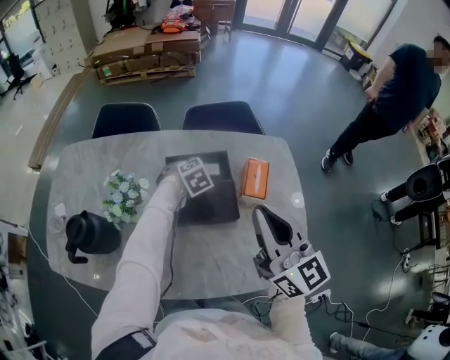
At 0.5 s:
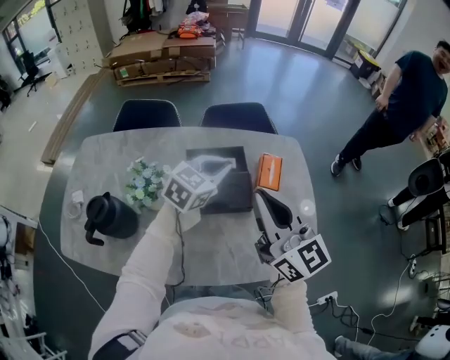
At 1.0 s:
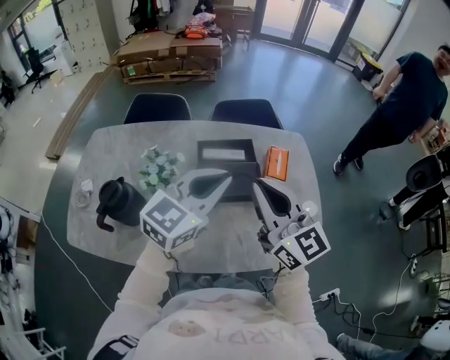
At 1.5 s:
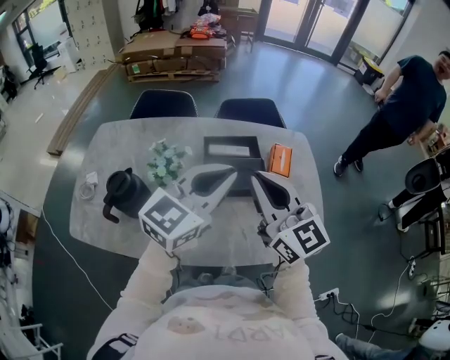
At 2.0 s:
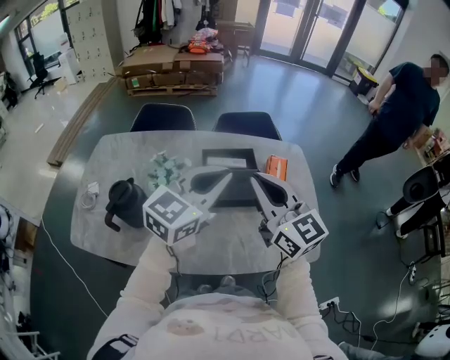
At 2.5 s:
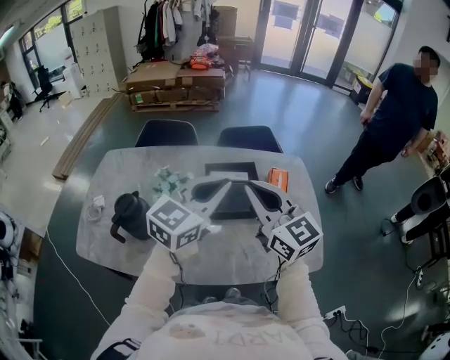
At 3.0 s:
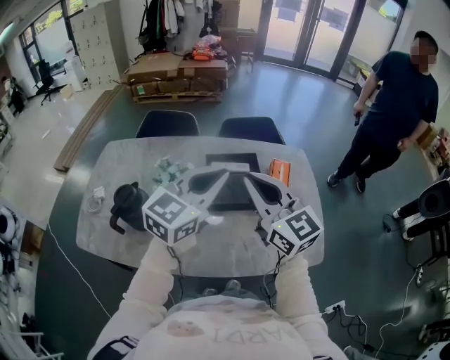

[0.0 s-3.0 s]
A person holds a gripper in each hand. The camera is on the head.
0.0 to 1.5 s: The right gripper is displaced to the left and backward by roughly 15 cm; the left gripper goes about 40 cm upward and backward, and tips its fingers upward by roughly 60 degrees.
1.5 to 3.0 s: The grippers make only small movements.

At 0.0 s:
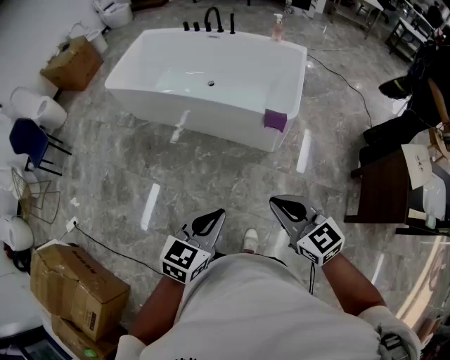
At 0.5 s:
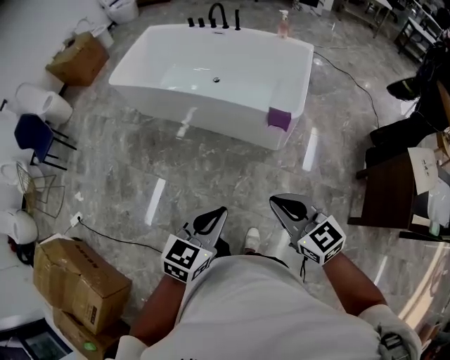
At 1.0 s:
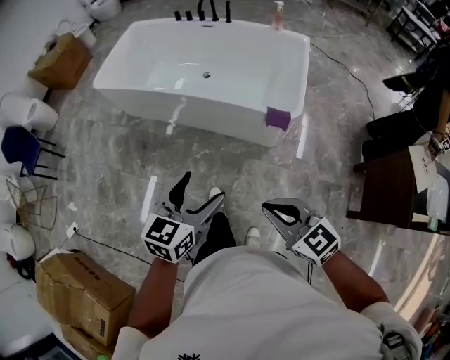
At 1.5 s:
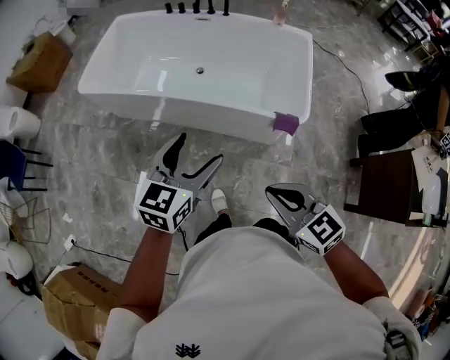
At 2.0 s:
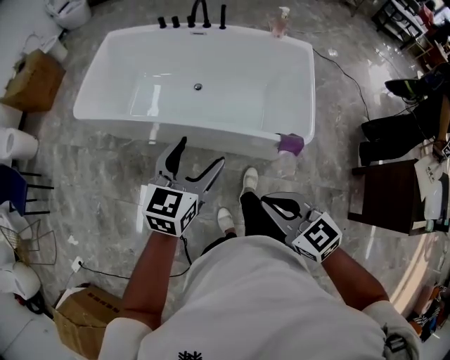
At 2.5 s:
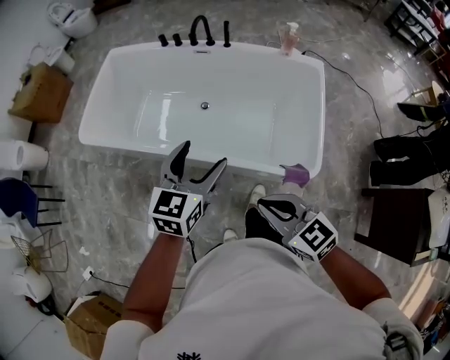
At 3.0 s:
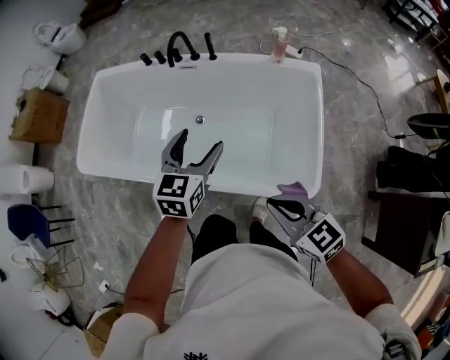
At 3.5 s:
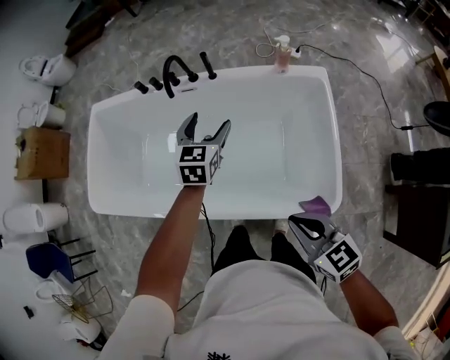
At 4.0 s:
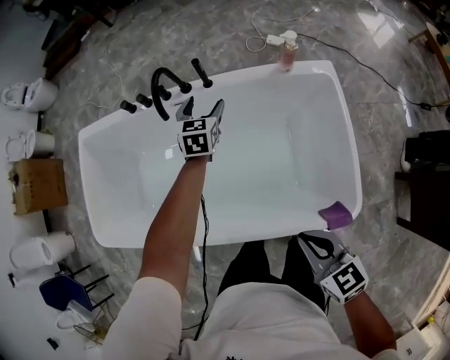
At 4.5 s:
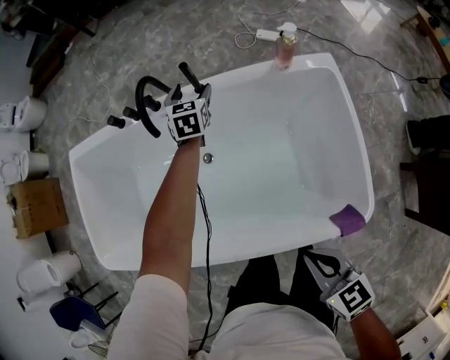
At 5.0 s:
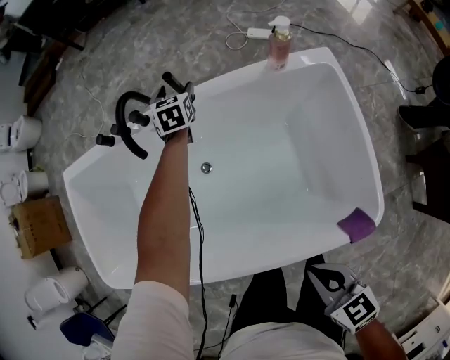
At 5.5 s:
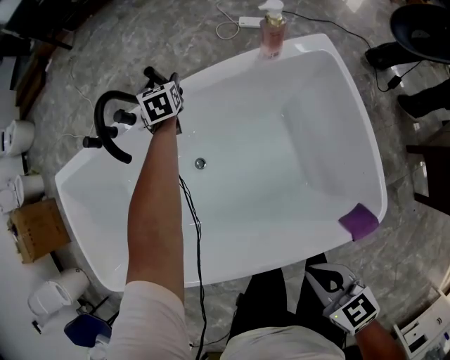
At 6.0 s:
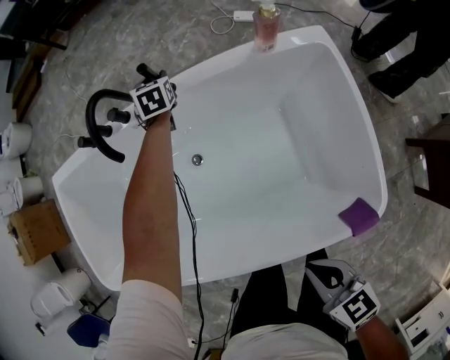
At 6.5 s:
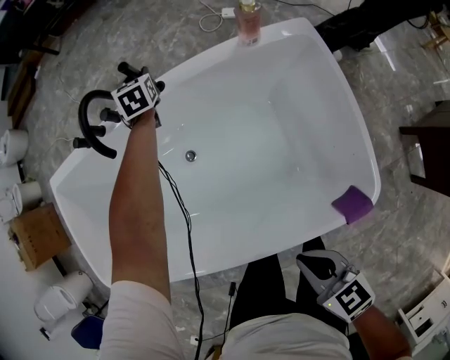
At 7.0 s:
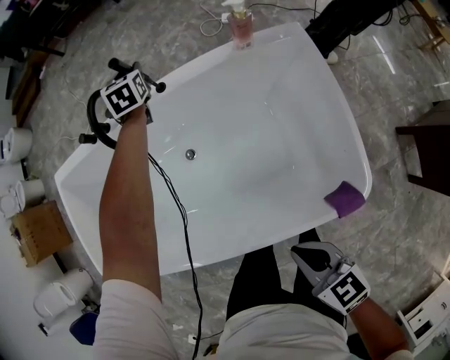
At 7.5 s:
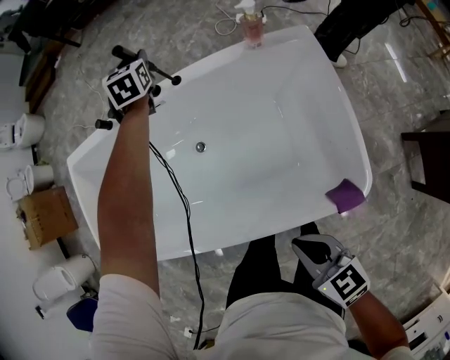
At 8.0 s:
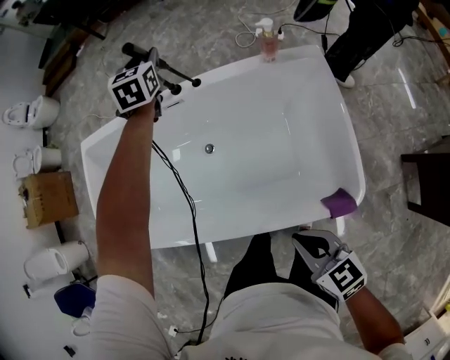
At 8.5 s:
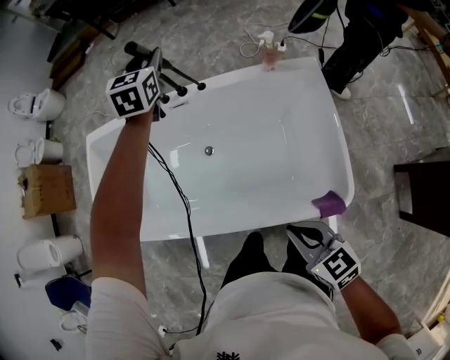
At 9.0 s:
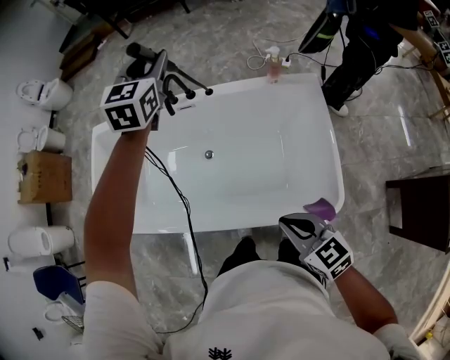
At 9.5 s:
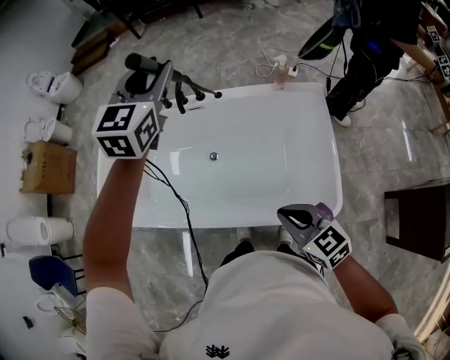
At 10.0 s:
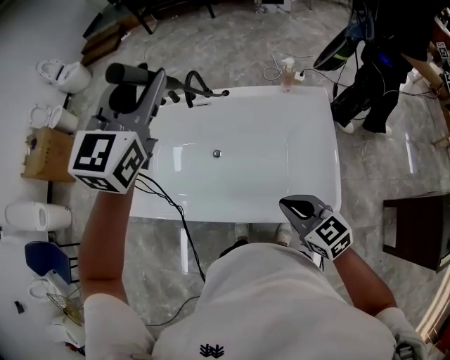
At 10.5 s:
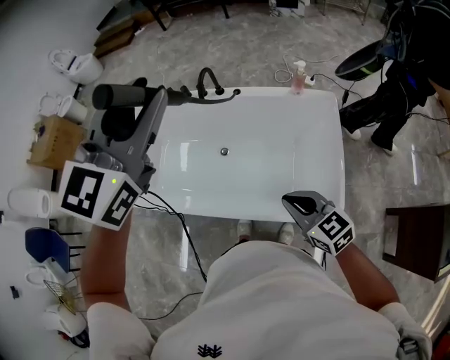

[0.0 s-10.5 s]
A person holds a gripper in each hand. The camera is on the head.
0.0 to 2.0 s: The two grippers go roughly 40 cm forward. The left gripper opens.
2.0 to 4.0 s: Both grippers are carried forward, roughly 60 cm. The right gripper rotates some 30 degrees.
4.0 to 6.5 s: The right gripper goes some 10 cm downward. Meanwhile the left gripper shifts about 25 cm forward and downward, and closes its fingers.
6.5 to 8.5 s: The right gripper shifts roughly 15 cm upward and backward. Meanwhile the left gripper shifts about 40 cm upward and backward.
8.5 to 10.5 s: The right gripper is displaced upward by approximately 10 cm. Meanwhile the left gripper heads backward and upward, covering approximately 40 cm.

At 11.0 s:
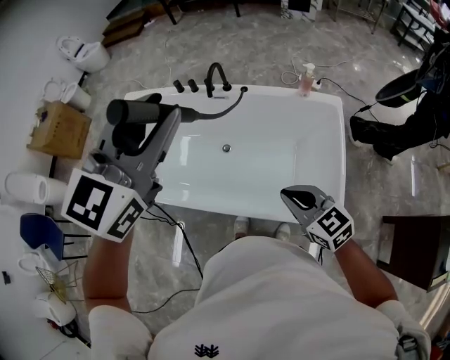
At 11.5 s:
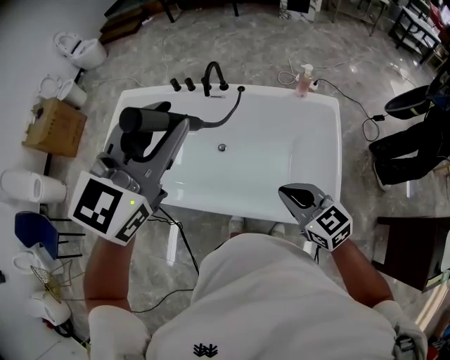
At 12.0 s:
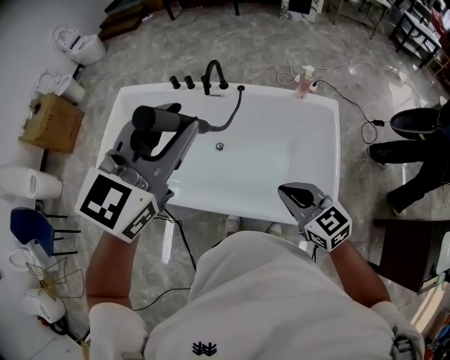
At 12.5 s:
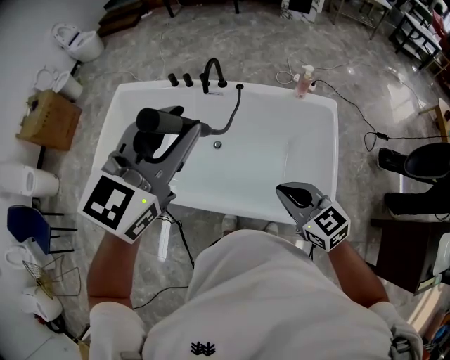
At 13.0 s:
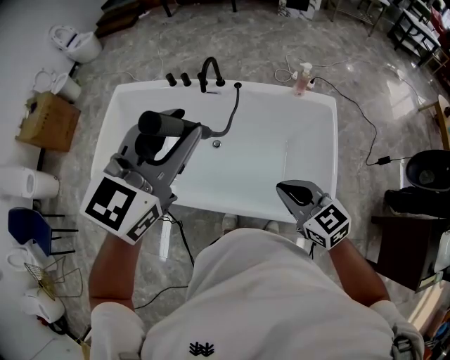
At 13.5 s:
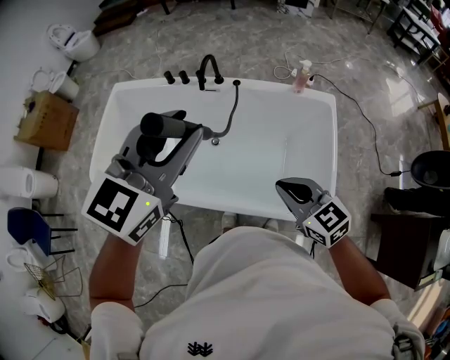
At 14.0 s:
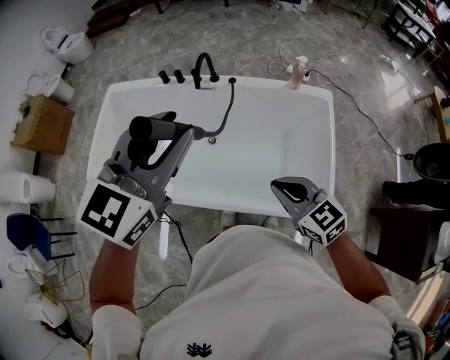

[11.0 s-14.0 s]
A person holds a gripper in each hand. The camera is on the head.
11.0 to 14.0 s: The grippers make only small movements.

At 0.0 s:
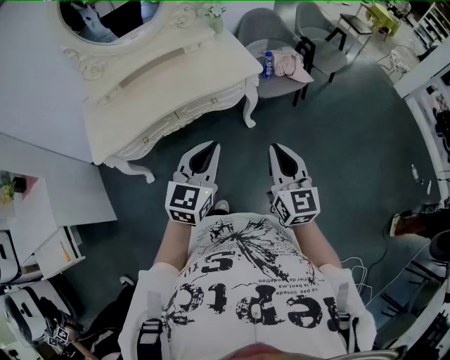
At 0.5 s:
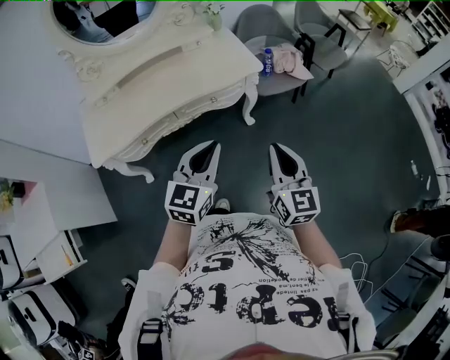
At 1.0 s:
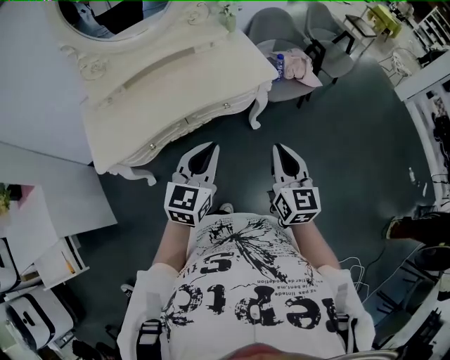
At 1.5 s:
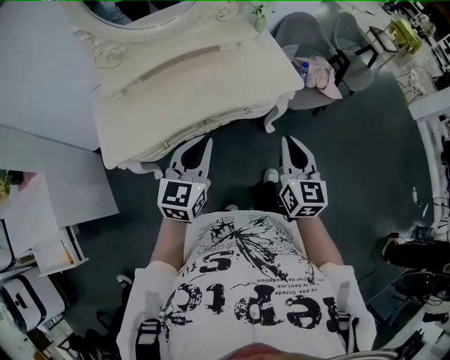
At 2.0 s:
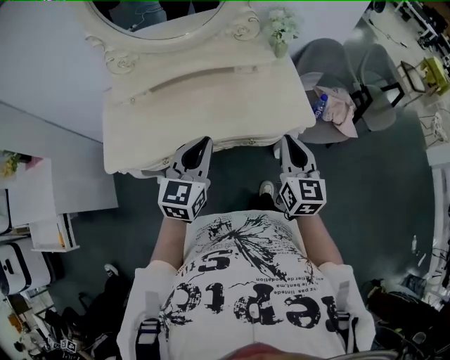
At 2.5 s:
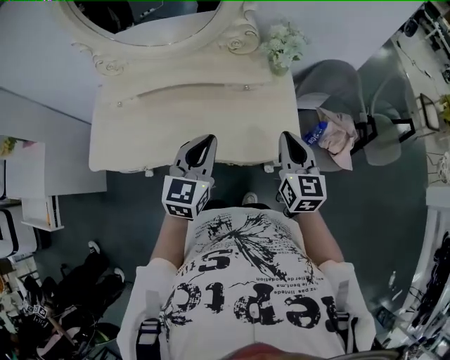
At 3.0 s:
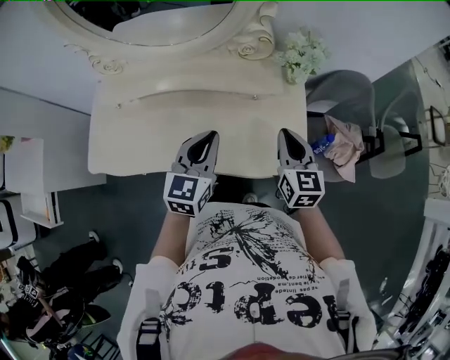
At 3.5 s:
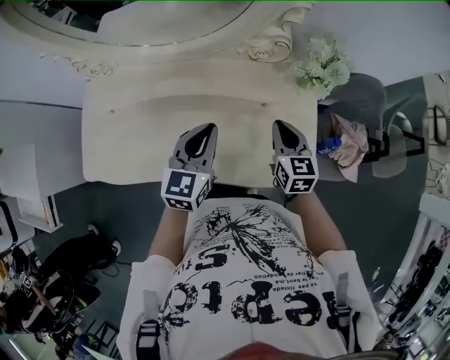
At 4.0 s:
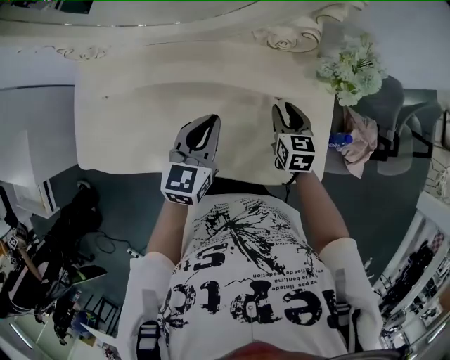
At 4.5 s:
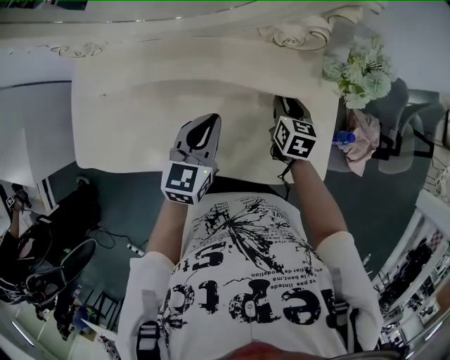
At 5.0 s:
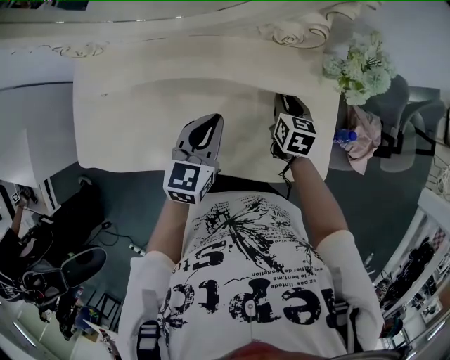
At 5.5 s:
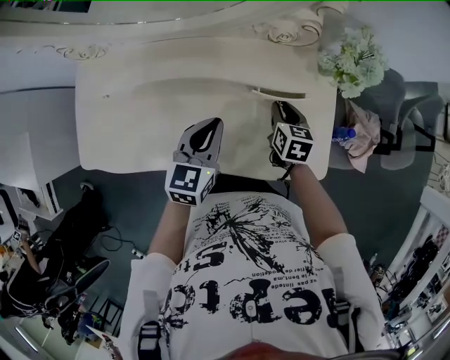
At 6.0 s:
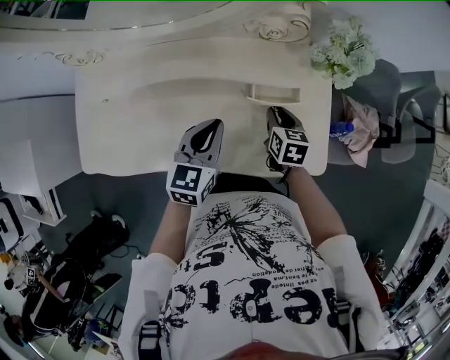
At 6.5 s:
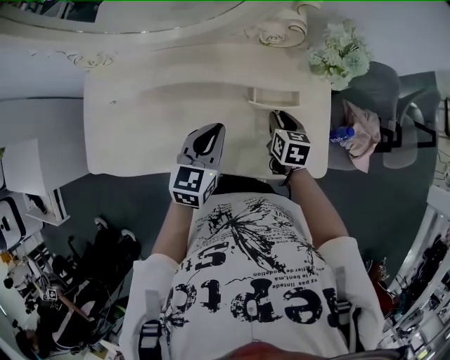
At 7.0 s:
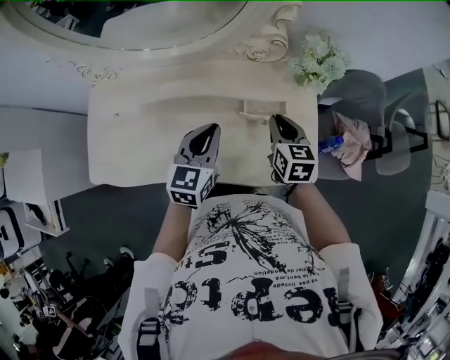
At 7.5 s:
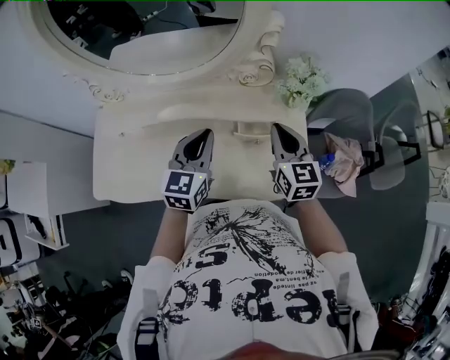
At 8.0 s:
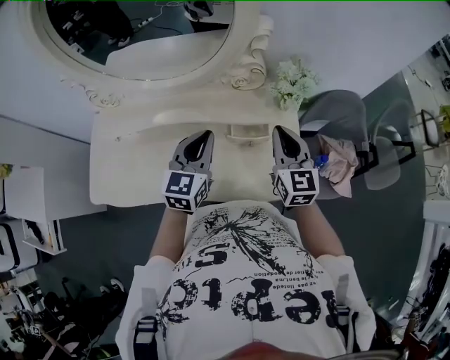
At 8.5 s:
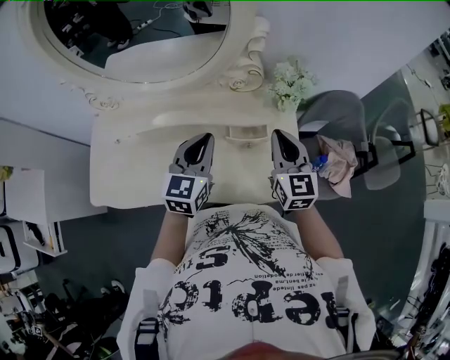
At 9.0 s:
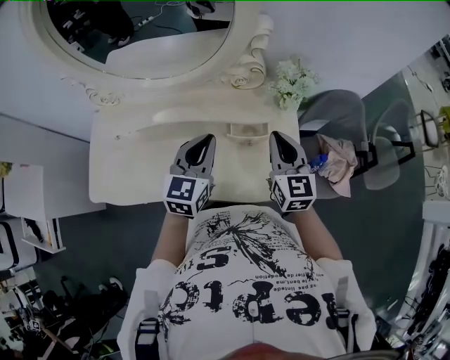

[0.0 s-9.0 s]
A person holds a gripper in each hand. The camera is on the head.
0.0 to 2.0 s: The grippers both shift forward and to the left by approximately 30 cm.
2.0 to 4.5 s: The grippers both shift forward and downward by roughly 40 cm. The right gripper tips its fingers downward by some 30 degrees, and opens up; the left gripper changes its angle by roughly 20 degrees.
4.5 to 7.0 s: The left gripper travels upward by approximately 5 cm. Meanwhile the right gripper moves upward and backward, approximately 15 cm.
7.0 to 9.0 s: The left gripper travels upward by some 5 cm, while the right gripper is displaced upward by approximately 10 cm, and changes its angle by some 20 degrees.

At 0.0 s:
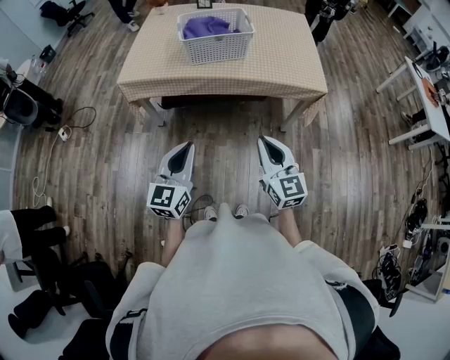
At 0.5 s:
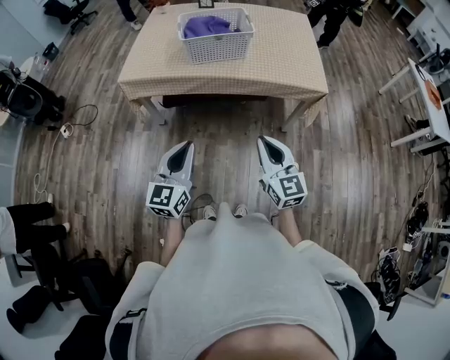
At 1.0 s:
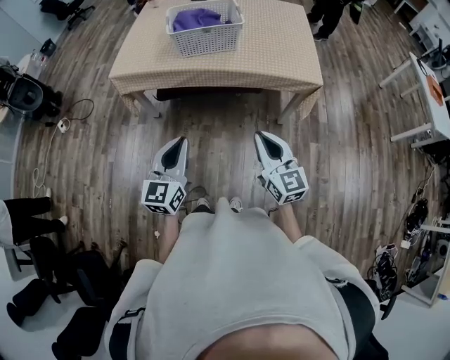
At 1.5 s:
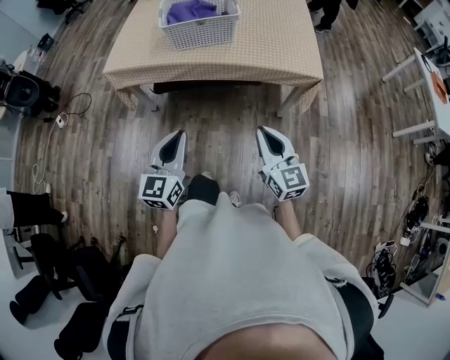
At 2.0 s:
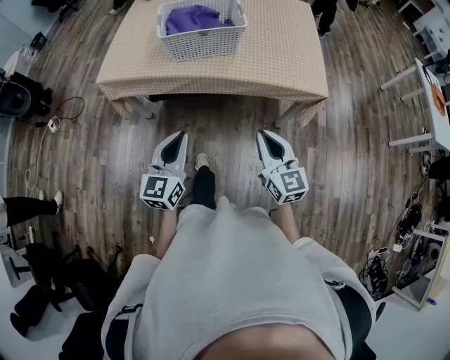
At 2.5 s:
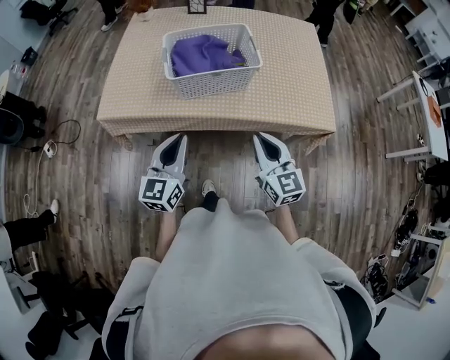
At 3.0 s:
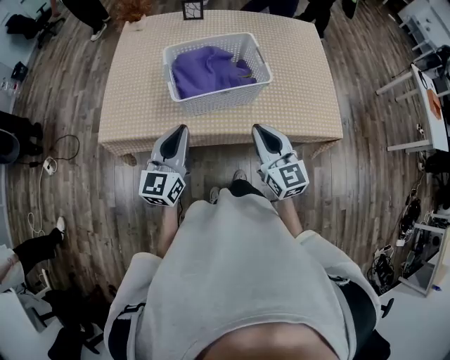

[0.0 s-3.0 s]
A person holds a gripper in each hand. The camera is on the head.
0.0 to 1.5 s: Both grippers travel together to the right, approximately 10 cm.
1.5 to 3.0 s: Both grippers travel together forward, approximately 40 cm.
